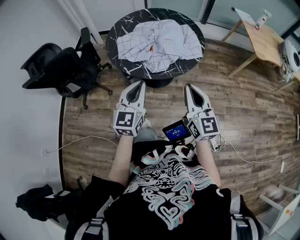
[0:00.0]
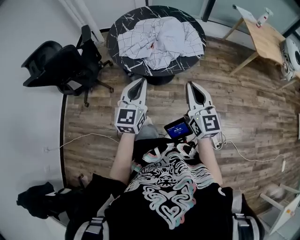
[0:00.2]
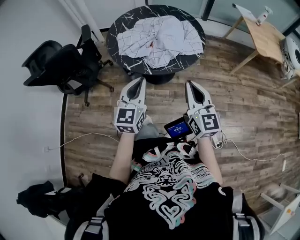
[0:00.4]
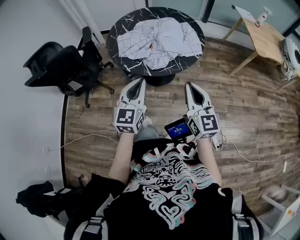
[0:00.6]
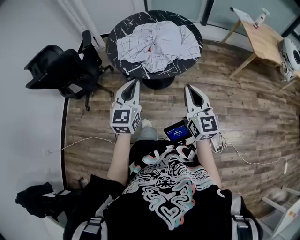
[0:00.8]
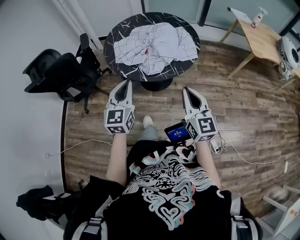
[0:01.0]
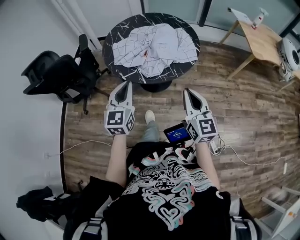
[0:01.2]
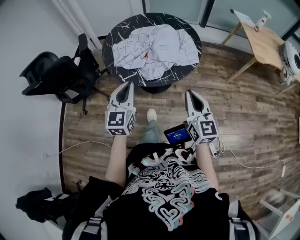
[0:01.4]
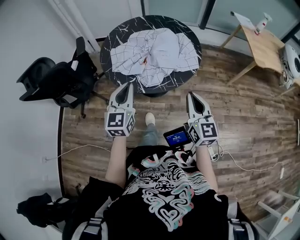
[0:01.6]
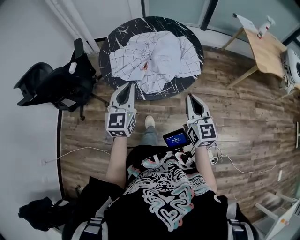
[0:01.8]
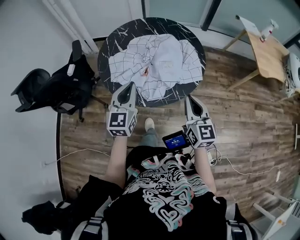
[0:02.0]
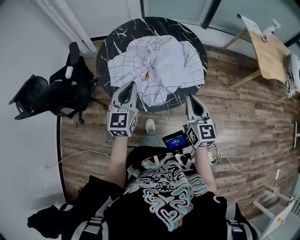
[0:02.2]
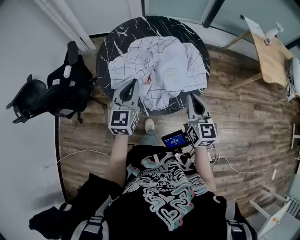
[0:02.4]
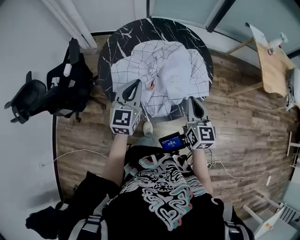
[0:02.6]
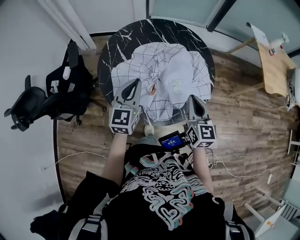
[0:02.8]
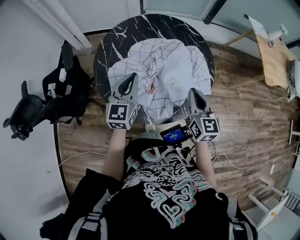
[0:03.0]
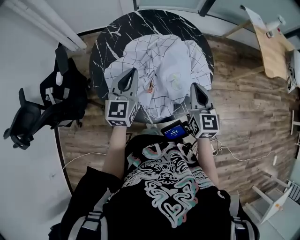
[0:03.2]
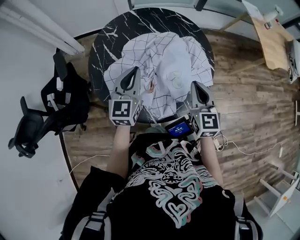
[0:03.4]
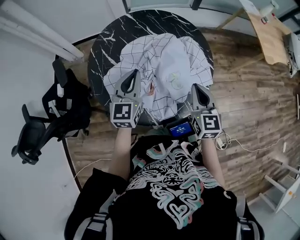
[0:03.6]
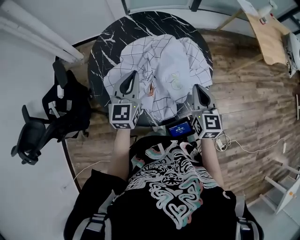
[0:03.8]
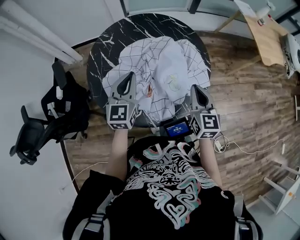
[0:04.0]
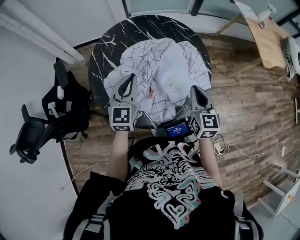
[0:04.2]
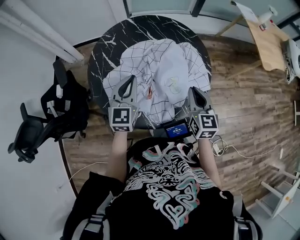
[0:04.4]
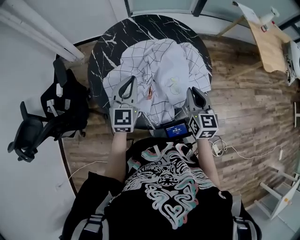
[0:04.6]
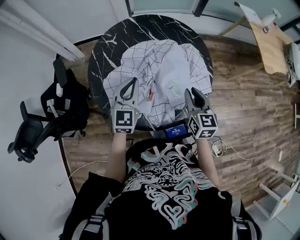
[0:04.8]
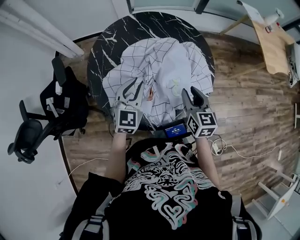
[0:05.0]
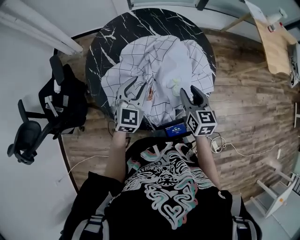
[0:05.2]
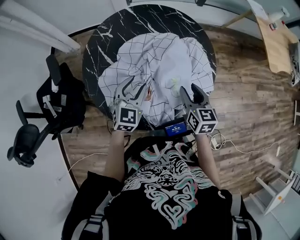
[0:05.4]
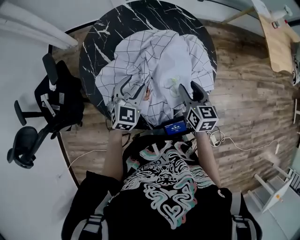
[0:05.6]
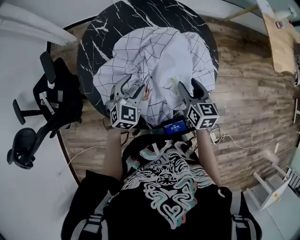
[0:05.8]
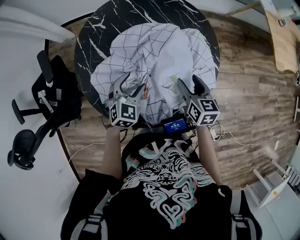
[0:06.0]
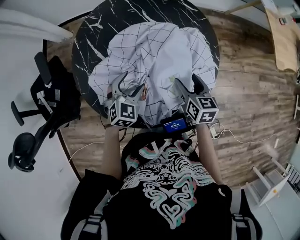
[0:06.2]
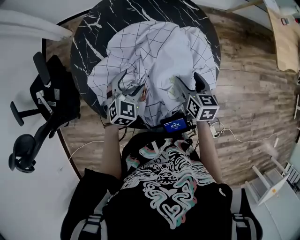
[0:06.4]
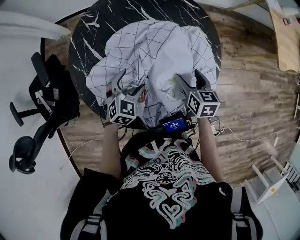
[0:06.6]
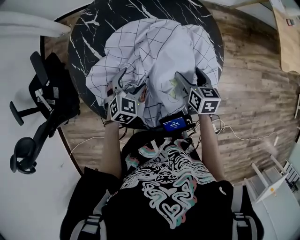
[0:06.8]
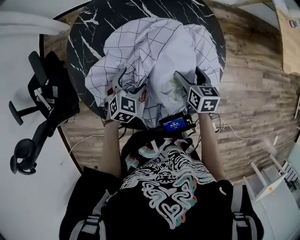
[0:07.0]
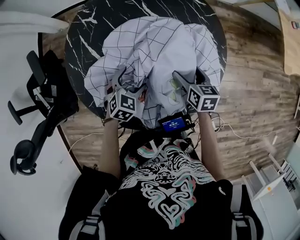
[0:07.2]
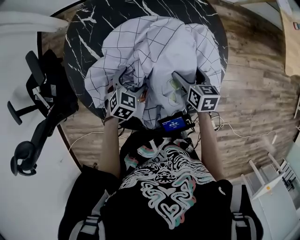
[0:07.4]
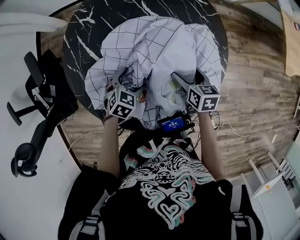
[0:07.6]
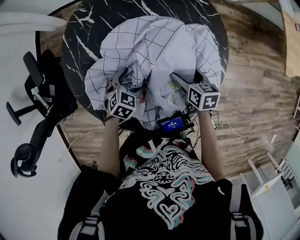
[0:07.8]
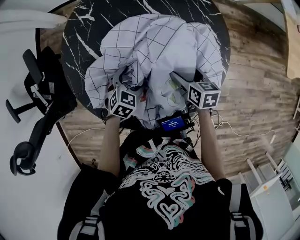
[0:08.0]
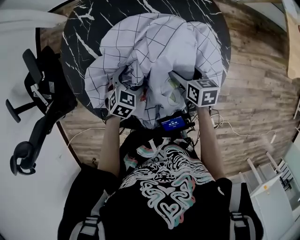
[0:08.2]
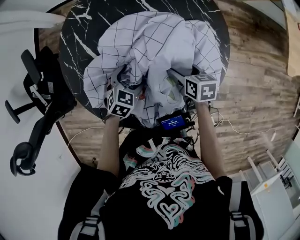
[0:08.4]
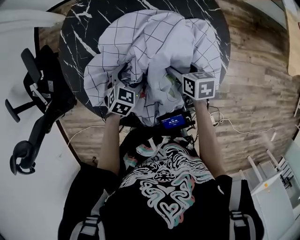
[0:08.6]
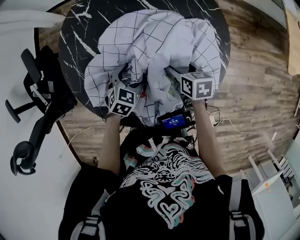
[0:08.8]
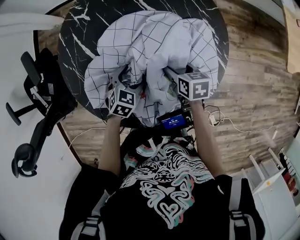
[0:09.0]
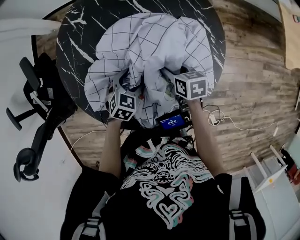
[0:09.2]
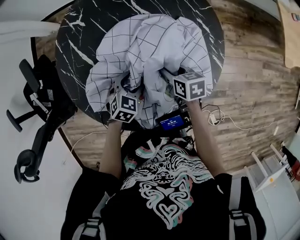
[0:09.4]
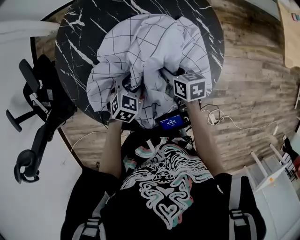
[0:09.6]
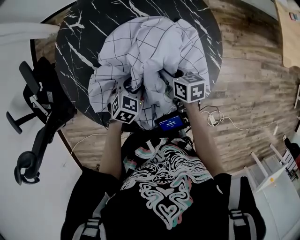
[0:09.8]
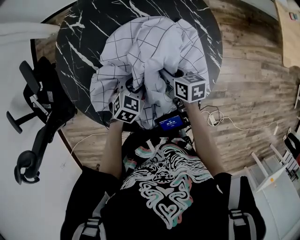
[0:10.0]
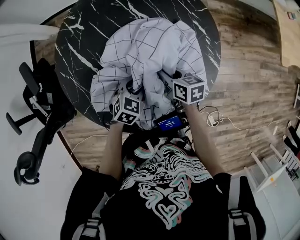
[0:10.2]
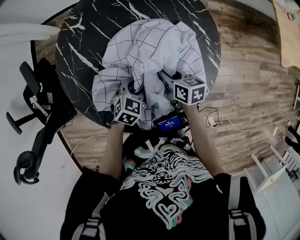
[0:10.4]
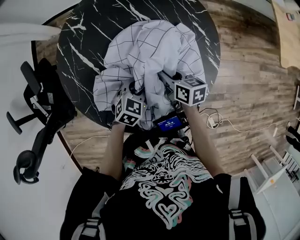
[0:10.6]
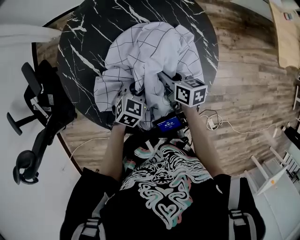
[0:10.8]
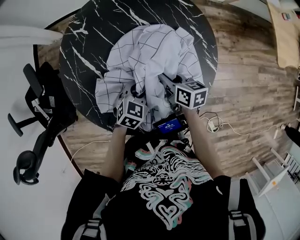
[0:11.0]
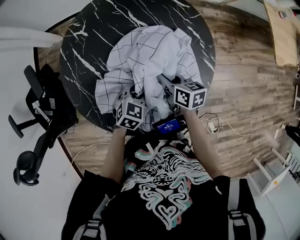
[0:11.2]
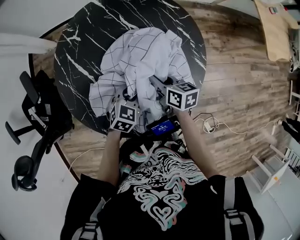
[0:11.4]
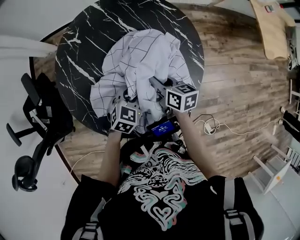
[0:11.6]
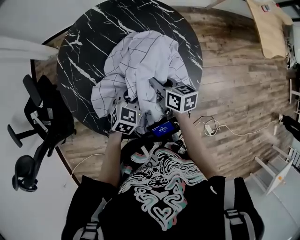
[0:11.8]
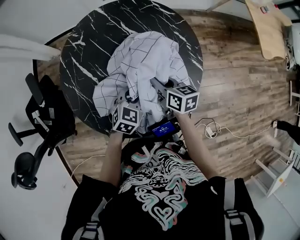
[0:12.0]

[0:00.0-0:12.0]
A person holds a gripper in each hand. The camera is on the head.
0:00.0 to 0:01.6: The right gripper goes some 10 cm forward and to the right, while the left gripper shifts some 10 cm forward.
0:01.6 to 0:03.0: Both grippers move forward, some 25 cm.
0:03.0 to 0:04.4: There are only small adjustments of the grippers.
0:04.4 to 0:06.0: The left gripper heads downward, covering approximately 15 cm, rotates about 30 degrees, and opens up; the right gripper shifts approximately 15 cm downward and forward, turns by approximately 20 degrees, and opens.
0:06.0 to 0:07.6: The right gripper shifts about 10 cm downward and forward, and opens. Meanwhile the left gripper heads downward, covering about 10 cm, and turns by about 20 degrees.
0:07.6 to 0:09.0: There are only small adjustments of the grippers.
0:09.0 to 0:10.4: The left gripper ends up approximately 5 cm from where it was, and closes; the right gripper closes up.
0:10.4 to 0:12.0: The two grippers go roughly 10 cm upward.

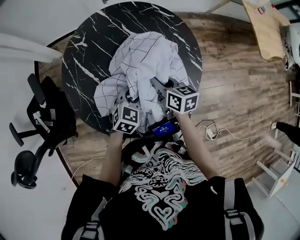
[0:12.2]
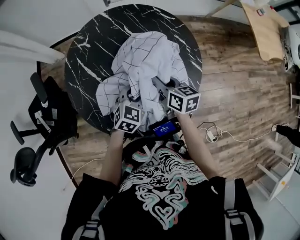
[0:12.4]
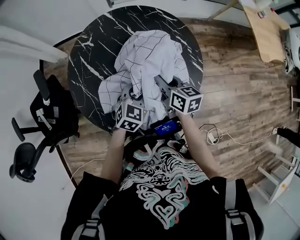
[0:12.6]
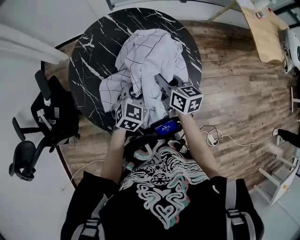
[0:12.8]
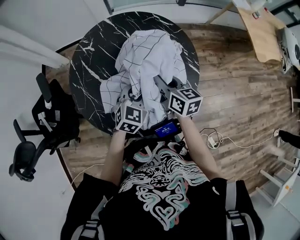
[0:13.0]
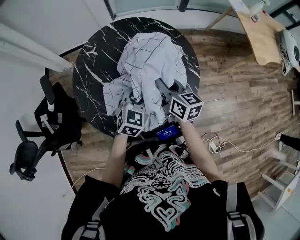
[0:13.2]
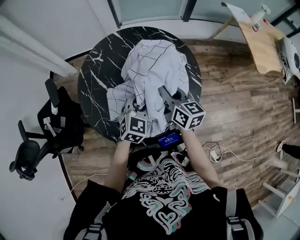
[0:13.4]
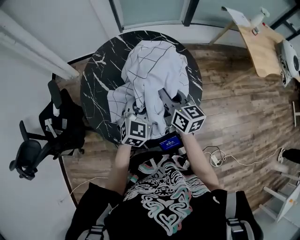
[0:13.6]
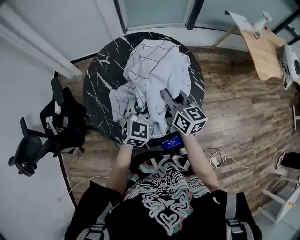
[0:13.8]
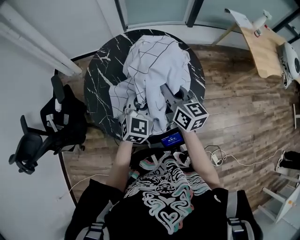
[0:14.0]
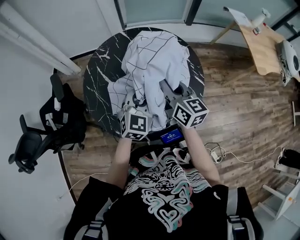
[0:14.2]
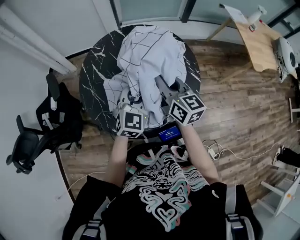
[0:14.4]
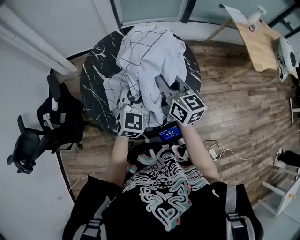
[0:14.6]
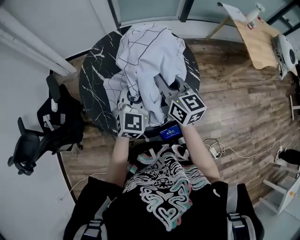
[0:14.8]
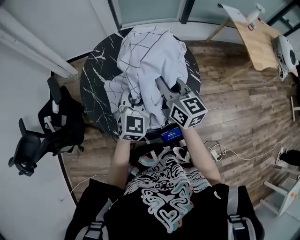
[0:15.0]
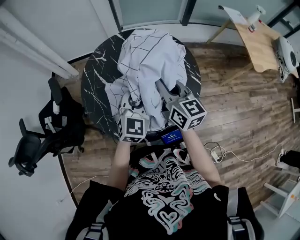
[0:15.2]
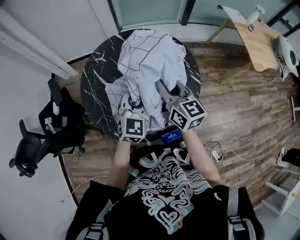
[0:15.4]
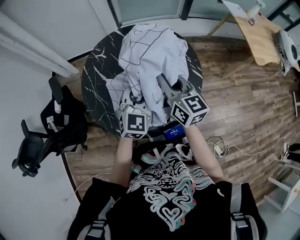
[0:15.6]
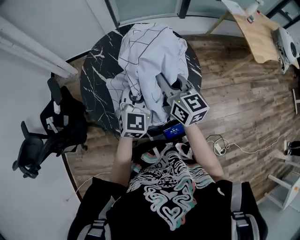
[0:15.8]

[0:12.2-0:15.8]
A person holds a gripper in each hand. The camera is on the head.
0:12.2 to 0:14.0: The two grippers go some 15 cm upward. The right gripper turns by approximately 30 degrees; the left gripper changes its angle by approximately 20 degrees.
0:14.0 to 0:15.8: The grippers stay close to where they were, moving slightly.

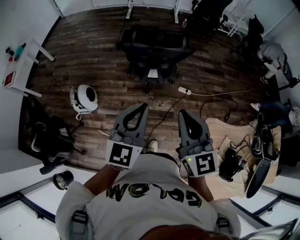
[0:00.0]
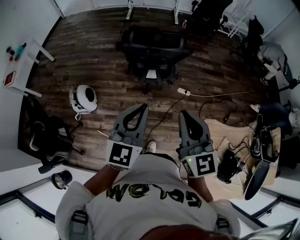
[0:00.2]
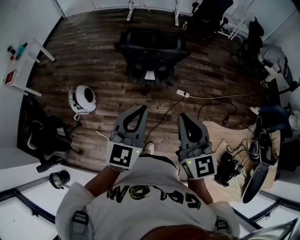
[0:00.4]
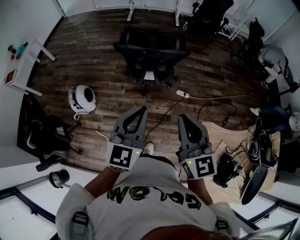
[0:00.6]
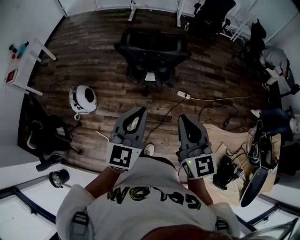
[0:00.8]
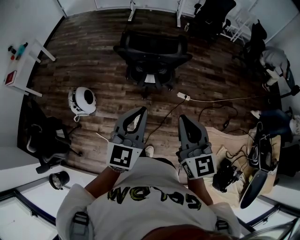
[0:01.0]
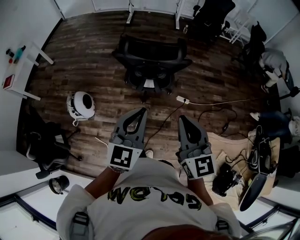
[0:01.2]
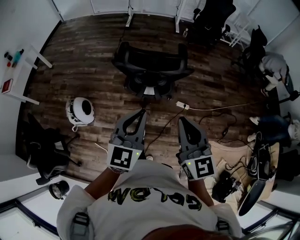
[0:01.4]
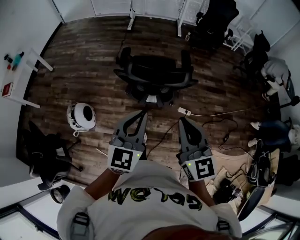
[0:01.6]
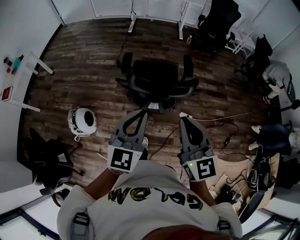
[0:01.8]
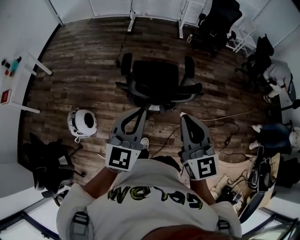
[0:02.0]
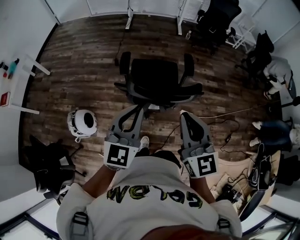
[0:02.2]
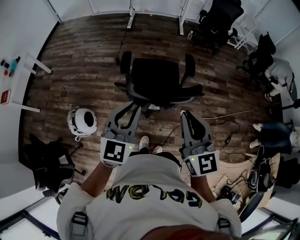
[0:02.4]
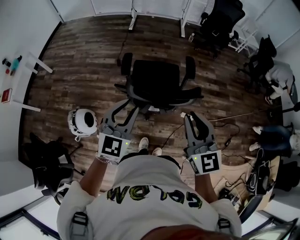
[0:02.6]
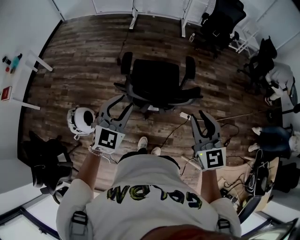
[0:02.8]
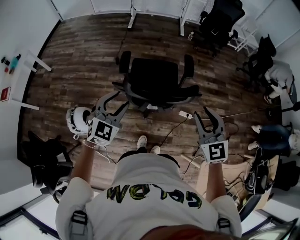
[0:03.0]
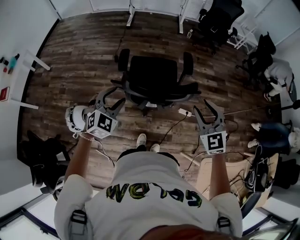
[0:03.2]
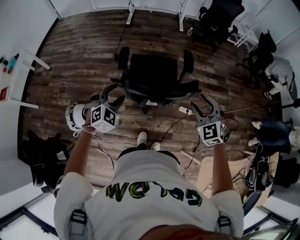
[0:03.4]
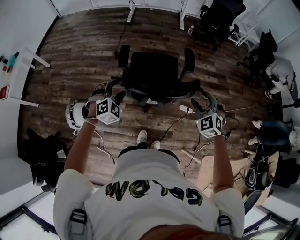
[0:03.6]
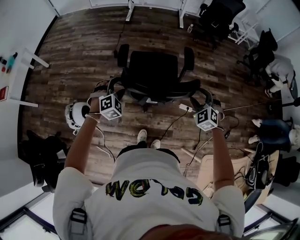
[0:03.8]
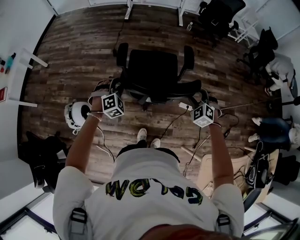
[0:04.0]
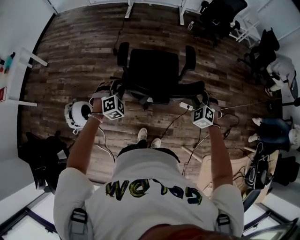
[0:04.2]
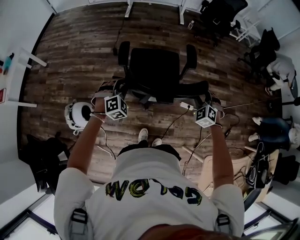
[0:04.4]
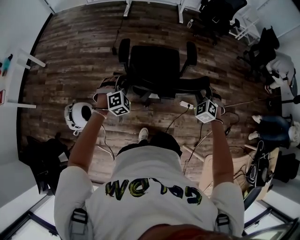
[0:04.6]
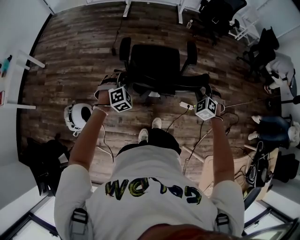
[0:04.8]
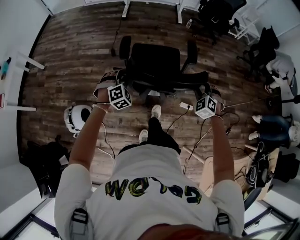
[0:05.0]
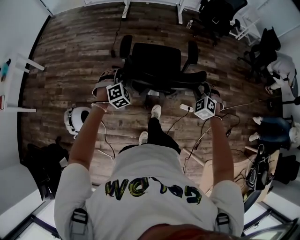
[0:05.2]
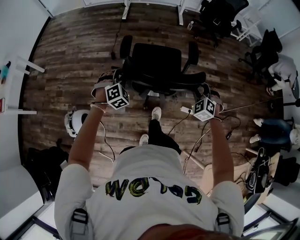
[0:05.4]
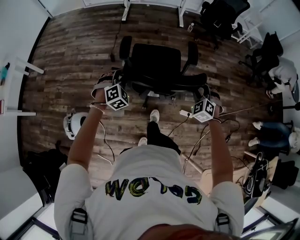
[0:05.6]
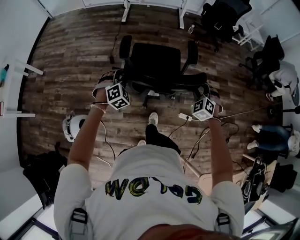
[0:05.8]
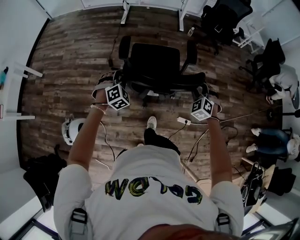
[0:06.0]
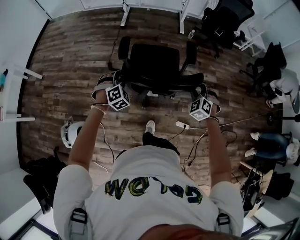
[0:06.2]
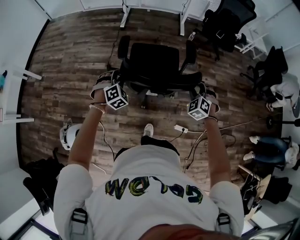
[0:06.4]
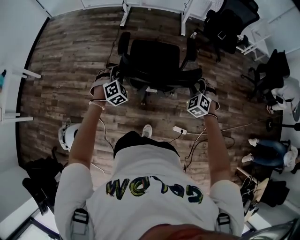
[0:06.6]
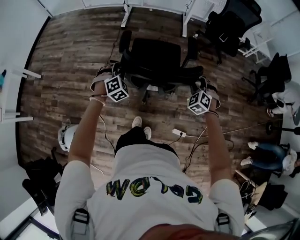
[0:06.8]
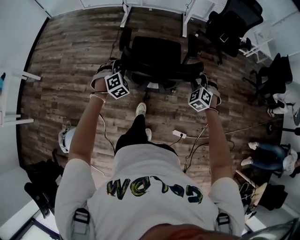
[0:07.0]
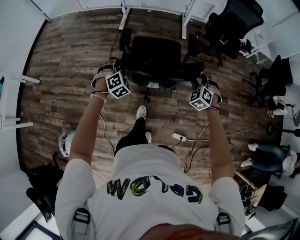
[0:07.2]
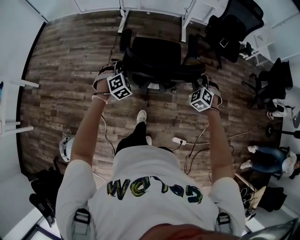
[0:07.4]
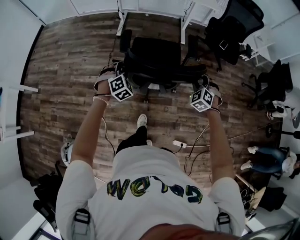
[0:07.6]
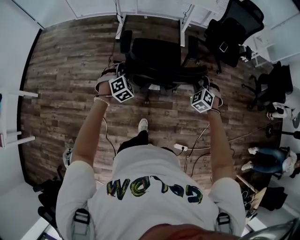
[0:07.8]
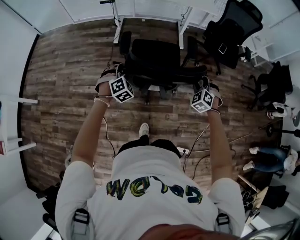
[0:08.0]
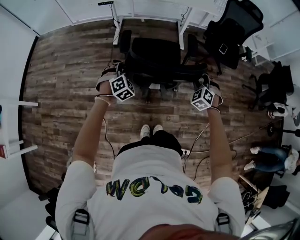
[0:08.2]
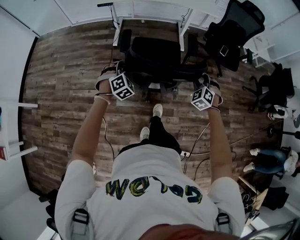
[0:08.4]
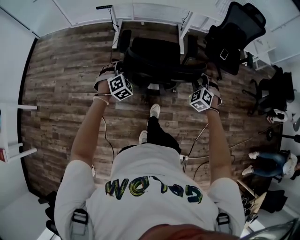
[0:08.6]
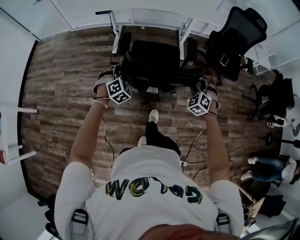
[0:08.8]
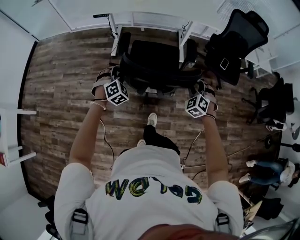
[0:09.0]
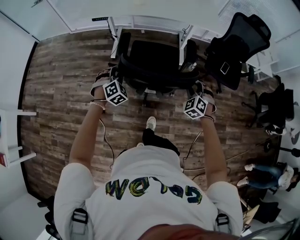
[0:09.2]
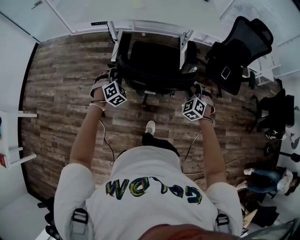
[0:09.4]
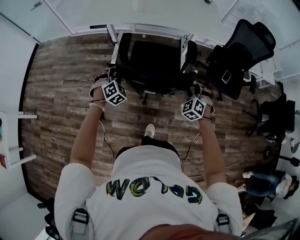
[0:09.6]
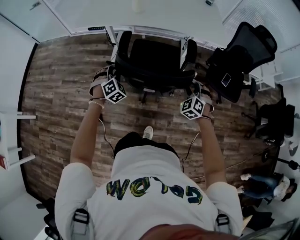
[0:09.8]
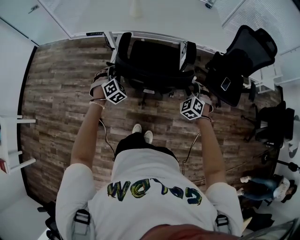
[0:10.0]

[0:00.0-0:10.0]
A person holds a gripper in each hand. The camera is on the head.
0:00.0 to 0:01.4: Both grippers move forward, some 15 cm.
0:01.4 to 0:02.8: The left gripper moves forward and to the left, approximately 25 cm, rotates approximately 20 degrees, and opens up. Meanwhile the right gripper heads forward, covering about 20 cm, and opens up.
0:02.8 to 0:04.2: The grippers both shift downward and forward by approximately 25 cm. The left gripper turns by some 40 degrees, and opens, then closes once more, while the right gripper angles its fingers downward, by about 30 degrees, and opens and closes again.
0:04.2 to 0:05.8: The grippers both shift forward by about 20 cm.
0:05.8 to 0:07.2: Both grippers move forward, roughly 35 cm.
0:07.2 to 0:08.6: The grippers both shift forward by about 30 cm.
0:08.6 to 0:10.0: Both grippers move forward, approximately 30 cm.
